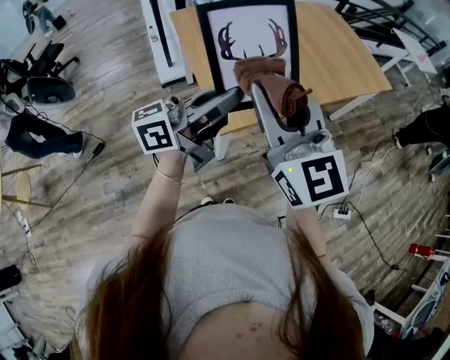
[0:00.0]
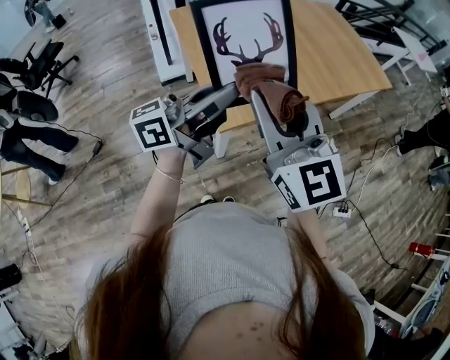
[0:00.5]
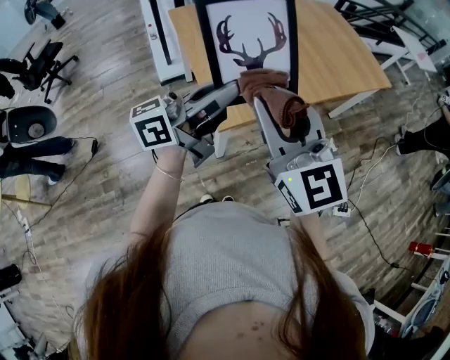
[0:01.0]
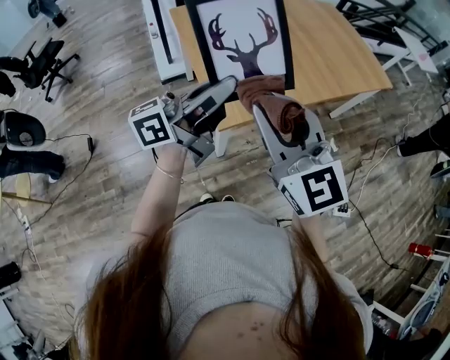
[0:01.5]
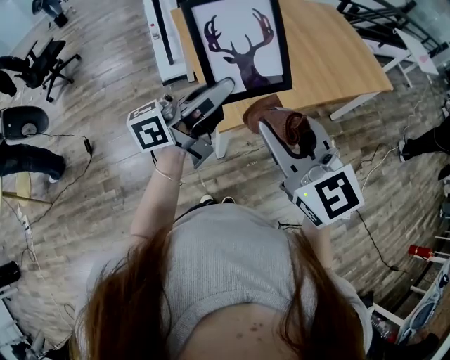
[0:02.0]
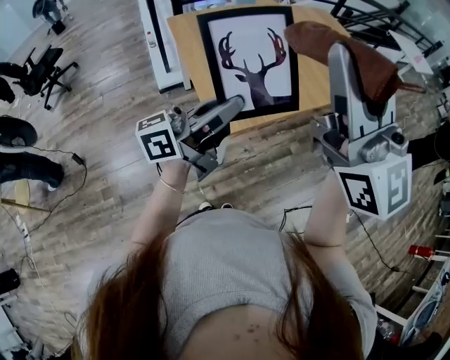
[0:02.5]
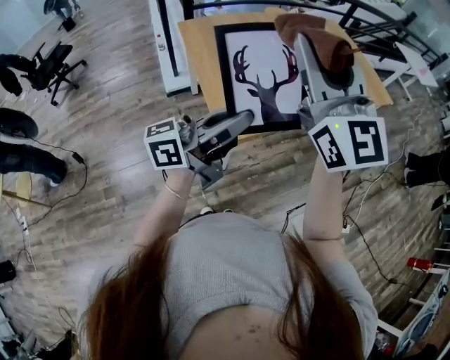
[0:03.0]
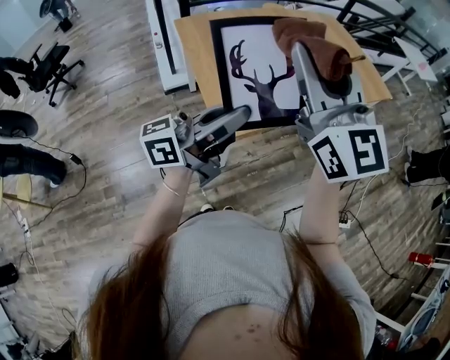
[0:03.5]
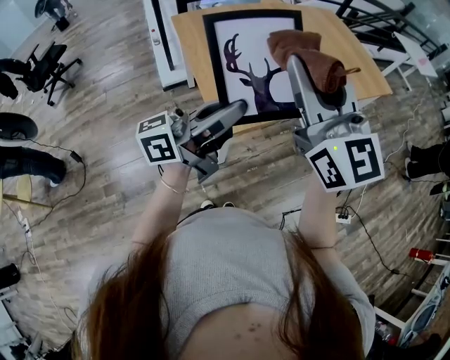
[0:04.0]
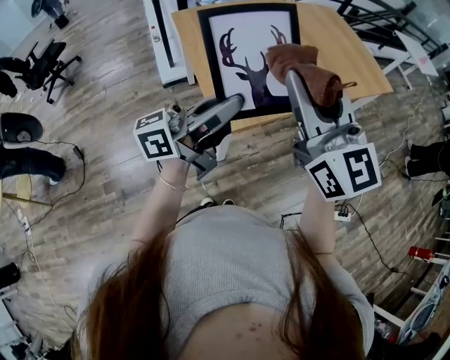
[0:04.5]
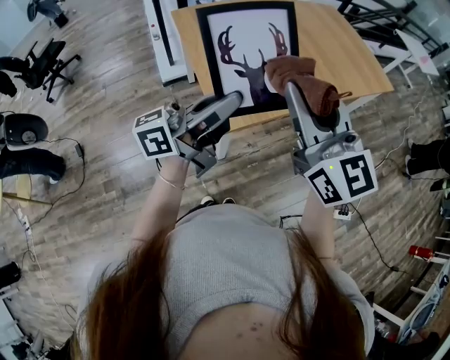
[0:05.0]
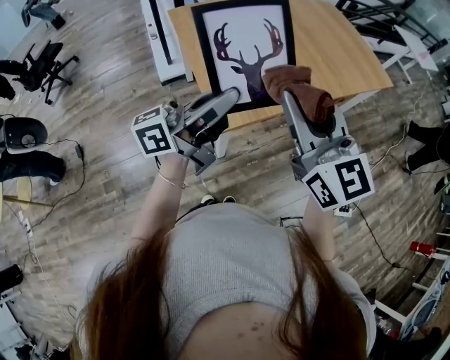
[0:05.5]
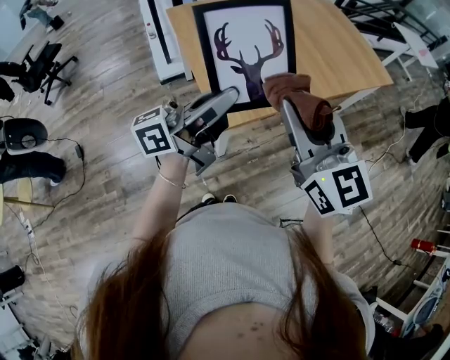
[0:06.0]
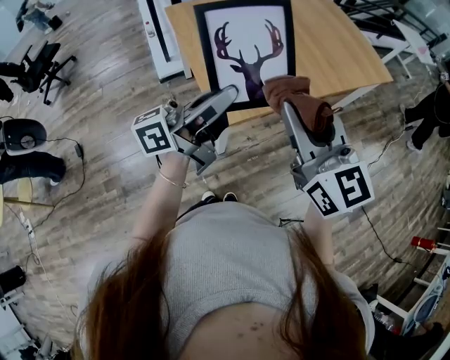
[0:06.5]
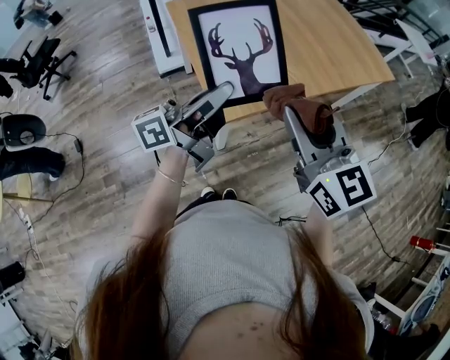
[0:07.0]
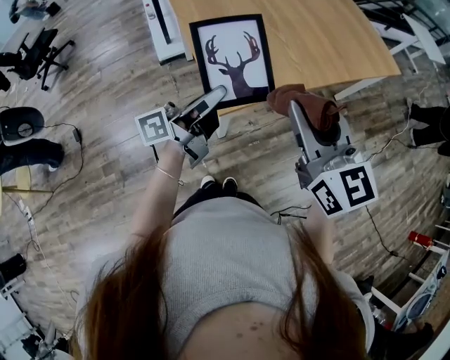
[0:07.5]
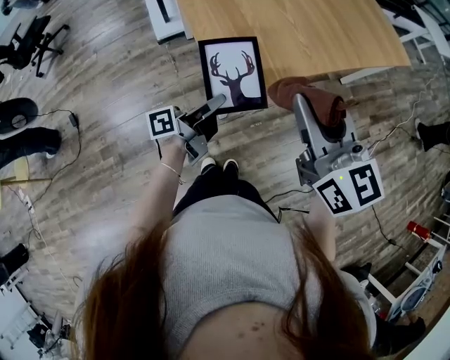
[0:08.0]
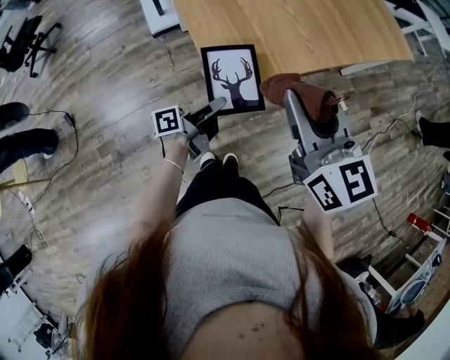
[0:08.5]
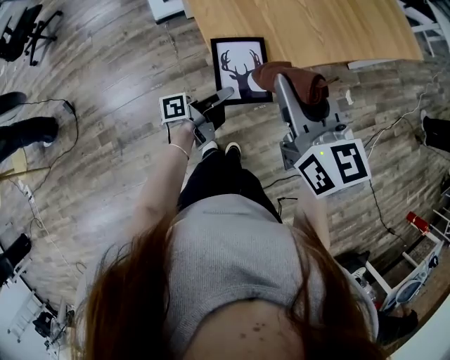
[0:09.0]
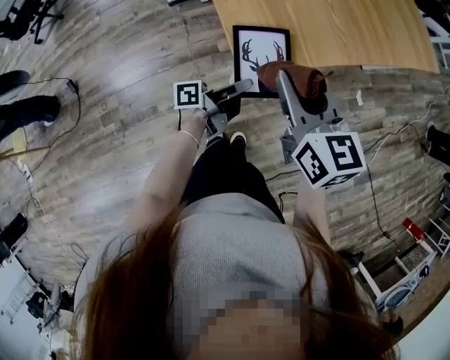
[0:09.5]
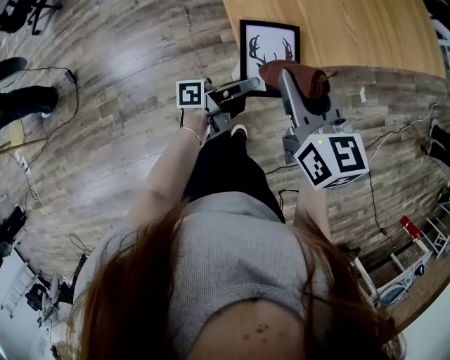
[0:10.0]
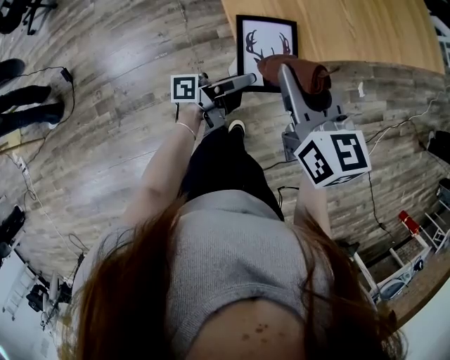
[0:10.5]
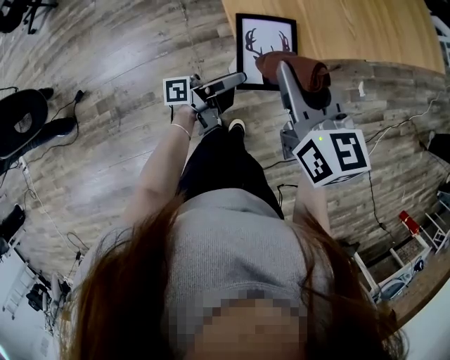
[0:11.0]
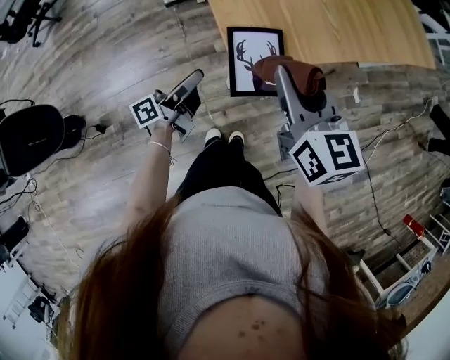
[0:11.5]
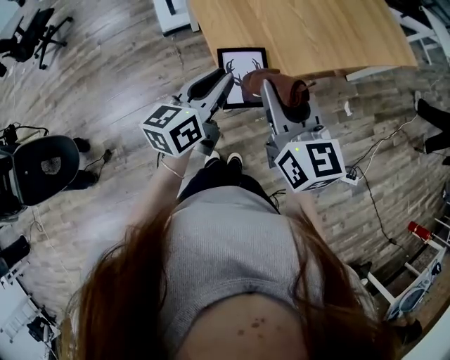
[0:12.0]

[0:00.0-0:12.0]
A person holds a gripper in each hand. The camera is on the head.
0:00.0 to 0:02.0: The right gripper shifts approximately 5 cm downward.
0:02.0 to 0:04.0: The right gripper moves upward and forward, some 15 cm, and rotates some 20 degrees.
0:04.0 to 0:06.0: The right gripper heads downward, covering roughly 10 cm.
0:06.0 to 0:08.0: The right gripper heads downward, covering about 5 cm. The left gripper shifts some 25 cm downward, and rotates about 40 degrees.
0:08.0 to 0:10.0: The left gripper goes about 10 cm downward. Meanwhile the right gripper goes approximately 20 cm downward and to the left.
0:10.0 to 0:12.0: The left gripper travels upward by some 20 cm, rotates around the line of its fingers by approximately 50 degrees, clockwise from behind, and opens, then closes again; the right gripper moves upward, approximately 10 cm.

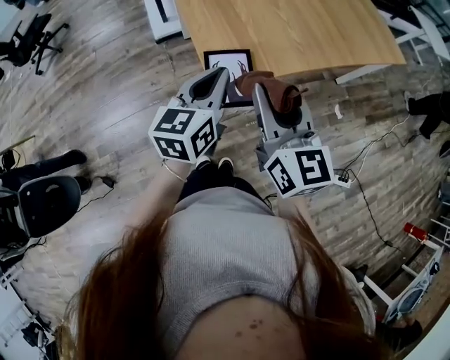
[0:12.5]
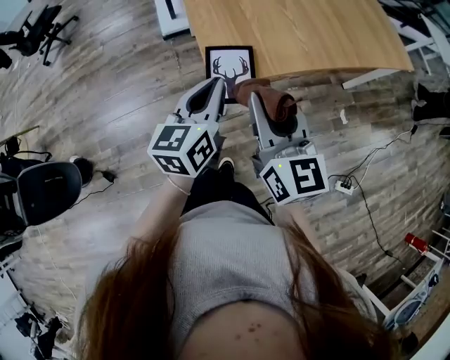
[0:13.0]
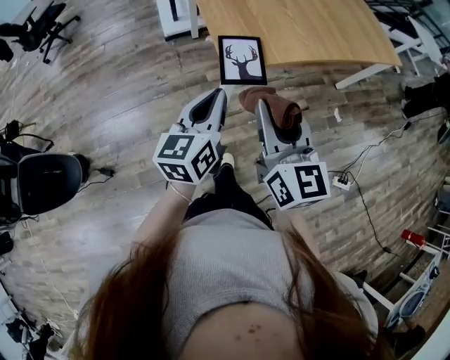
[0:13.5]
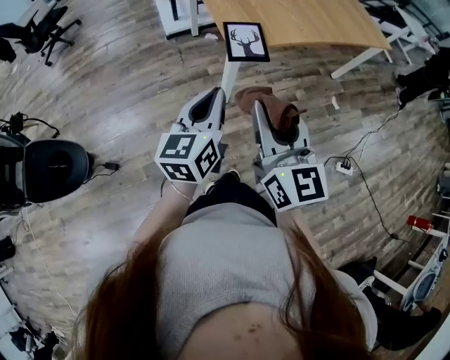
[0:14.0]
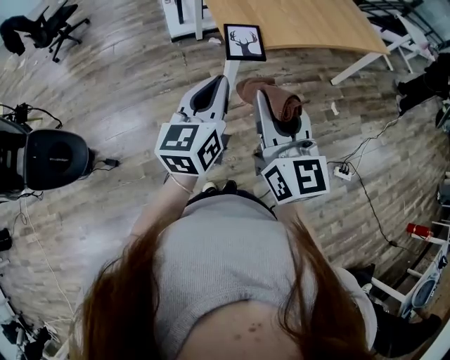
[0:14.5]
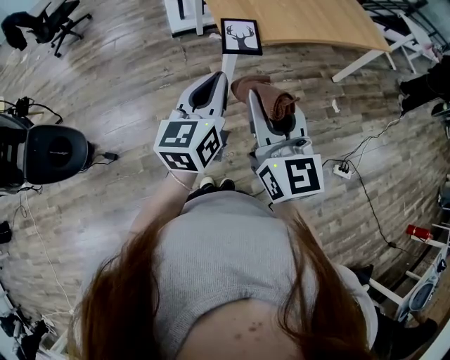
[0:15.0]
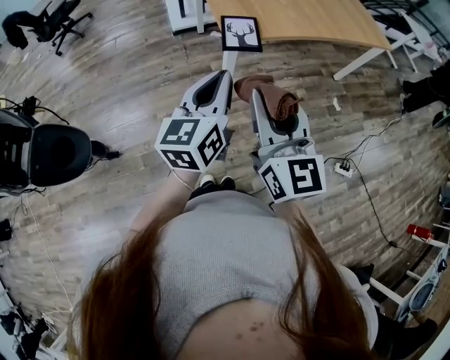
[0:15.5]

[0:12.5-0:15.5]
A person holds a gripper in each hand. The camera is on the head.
0:12.5 to 0:14.0: The two grippers go approximately 25 cm backward.
0:14.0 to 0:15.5: The right gripper shifts approximately 5 cm backward. The left gripper shifts about 5 cm to the right.

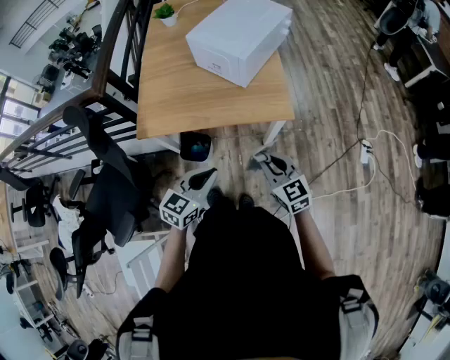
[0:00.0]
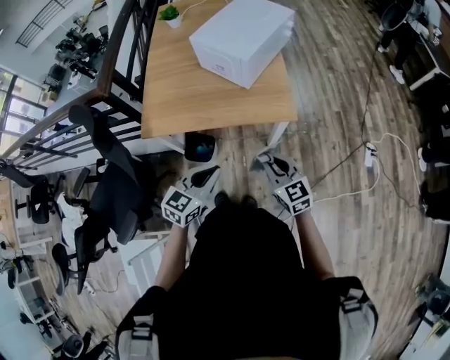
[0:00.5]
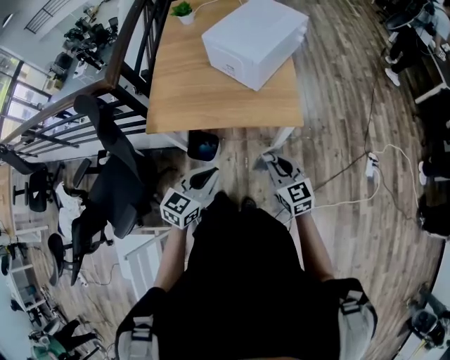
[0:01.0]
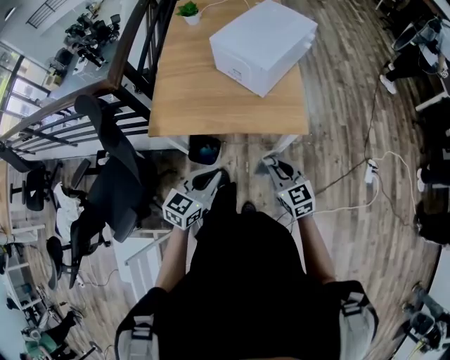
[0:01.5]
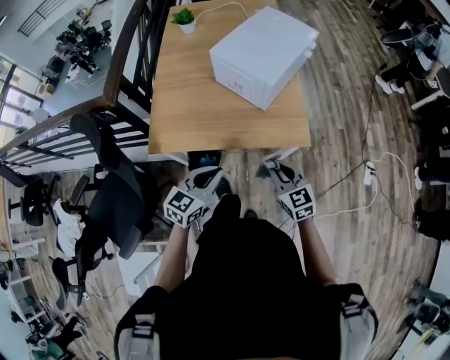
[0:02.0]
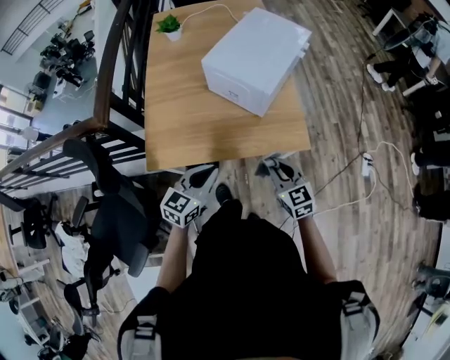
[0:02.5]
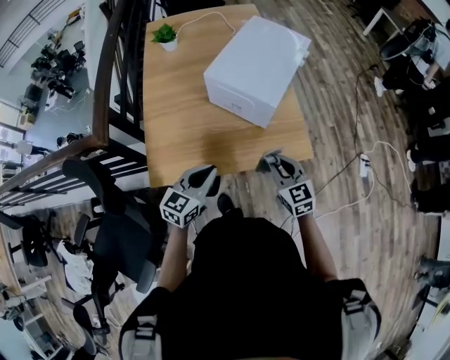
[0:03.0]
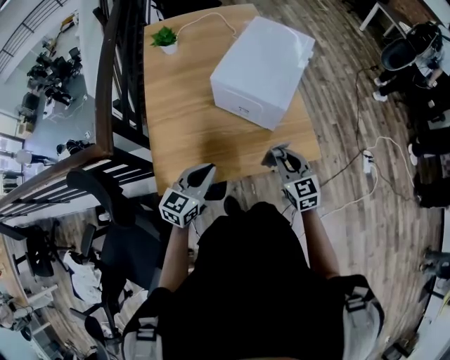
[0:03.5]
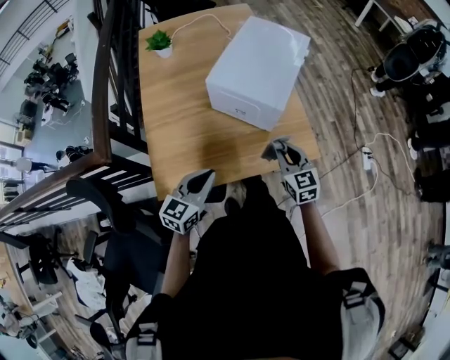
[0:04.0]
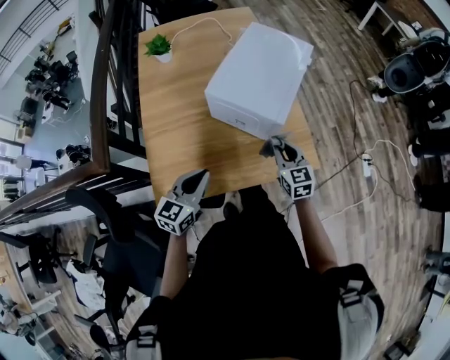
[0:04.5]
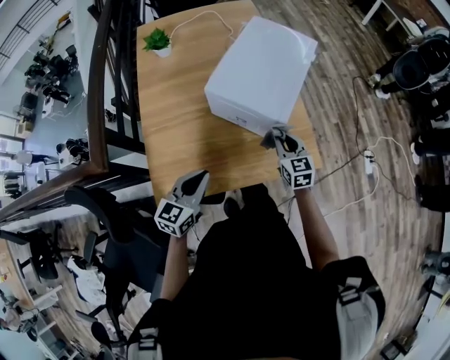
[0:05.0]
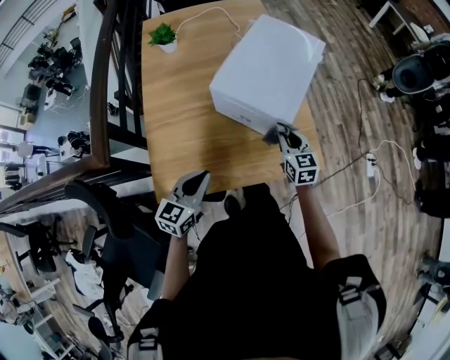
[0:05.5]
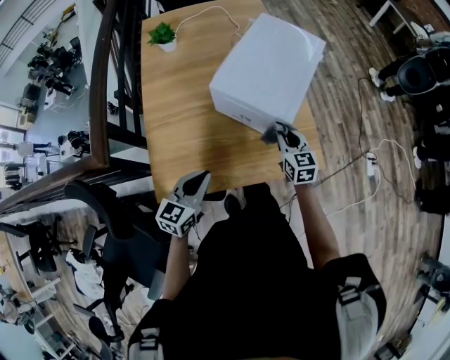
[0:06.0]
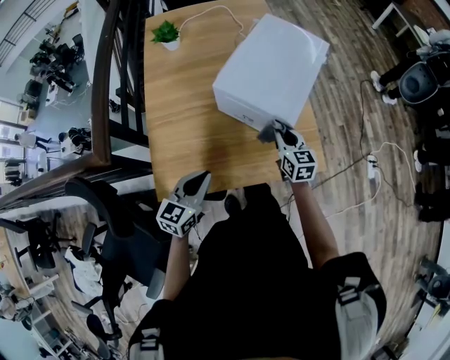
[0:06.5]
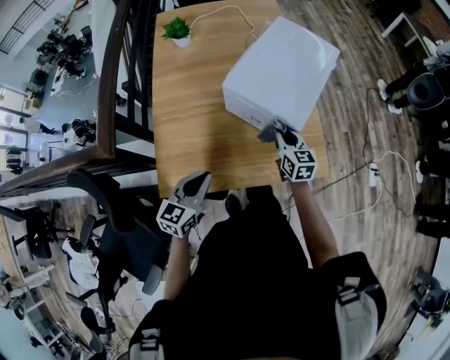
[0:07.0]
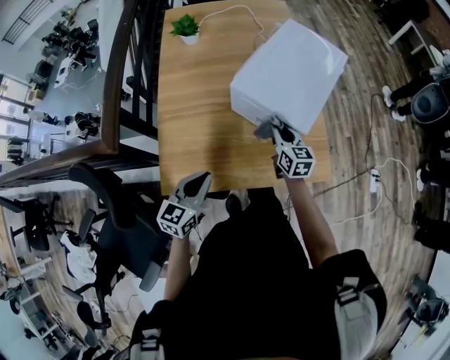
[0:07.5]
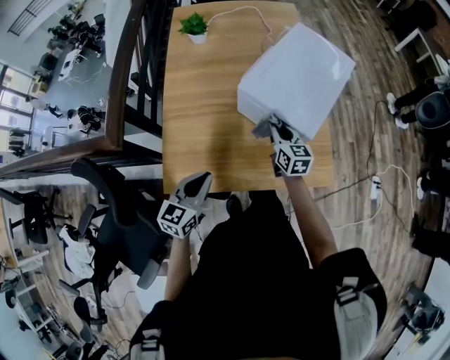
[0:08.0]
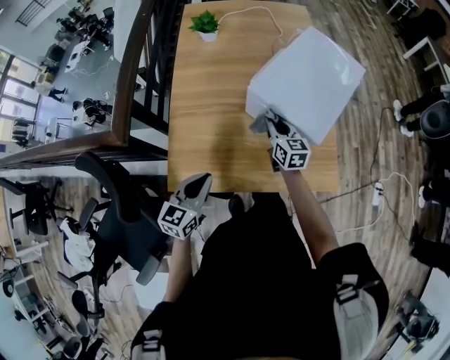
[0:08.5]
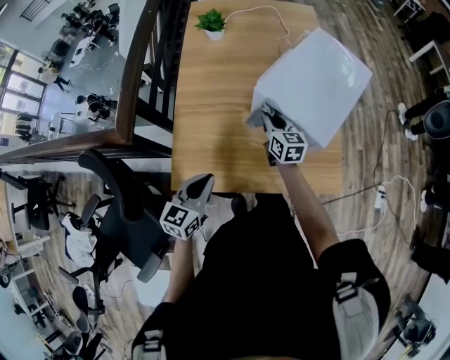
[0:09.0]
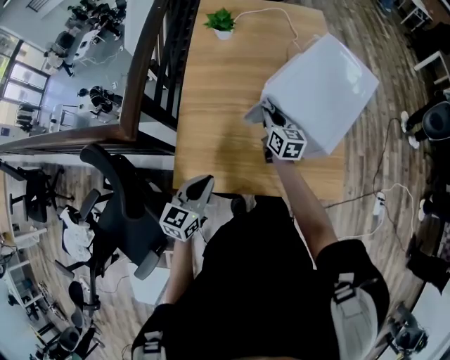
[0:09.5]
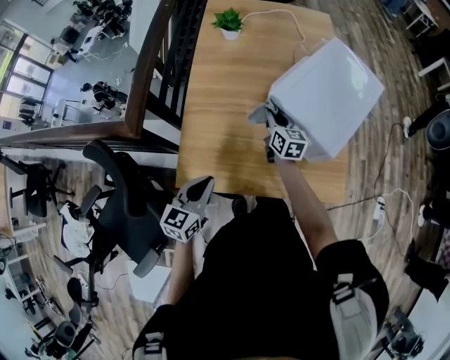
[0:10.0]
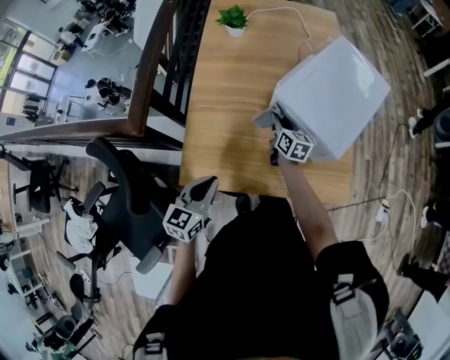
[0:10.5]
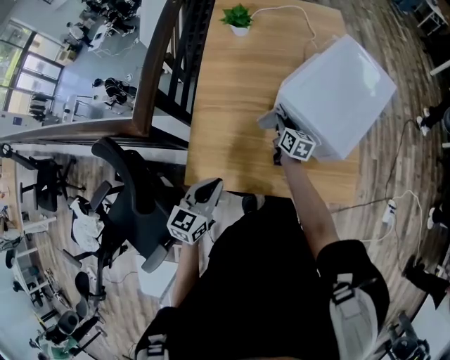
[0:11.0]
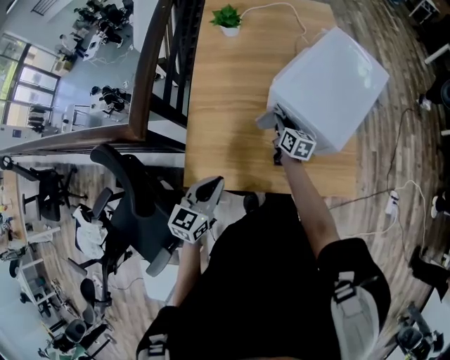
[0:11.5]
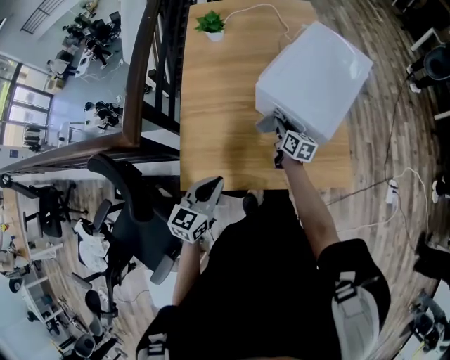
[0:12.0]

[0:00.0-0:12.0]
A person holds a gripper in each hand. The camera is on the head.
0:00.0 to 0:02.0: The right gripper shifts some 10 cm forward. Meanwhile the left gripper moves forward and to the left, about 10 cm.
0:02.0 to 0:04.0: The grippers both shift forward and to the left by approximately 20 cm.
0:04.0 to 0:06.0: The right gripper goes about 10 cm forward.
0:06.0 to 0:08.0: The right gripper goes about 10 cm to the left.
0:08.0 to 0:10.0: The left gripper goes about 5 cm to the left, while the right gripper is displaced to the left and forward by approximately 15 cm.
0:10.0 to 0:12.0: The right gripper moves to the right and downward, about 10 cm.
